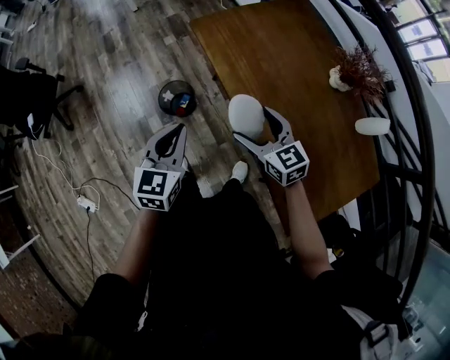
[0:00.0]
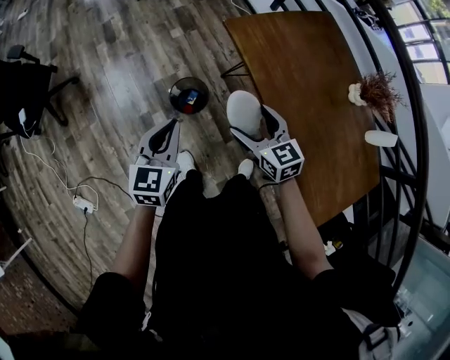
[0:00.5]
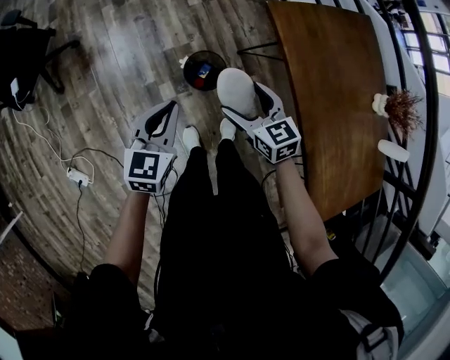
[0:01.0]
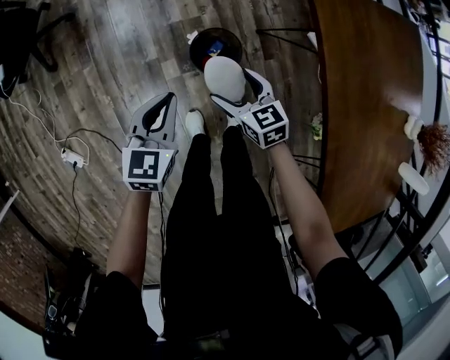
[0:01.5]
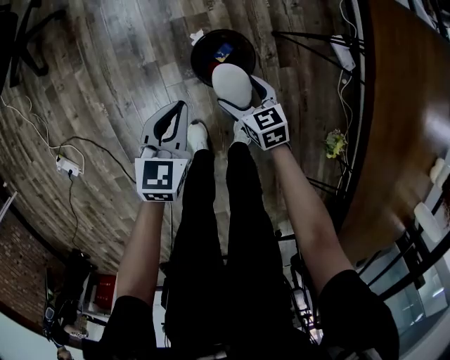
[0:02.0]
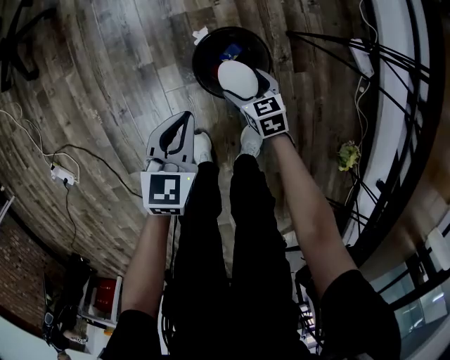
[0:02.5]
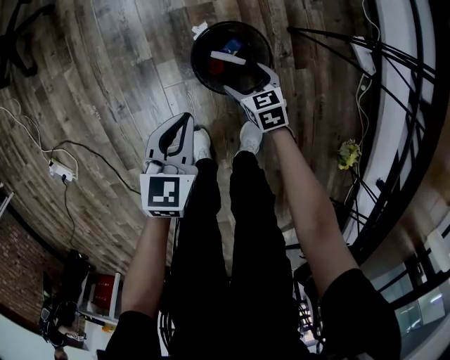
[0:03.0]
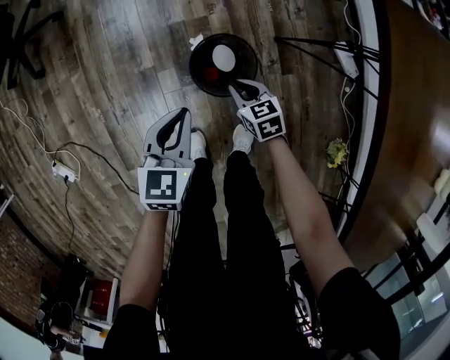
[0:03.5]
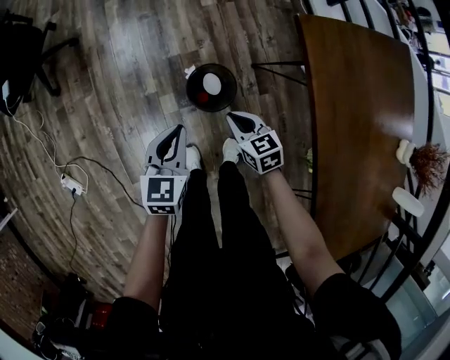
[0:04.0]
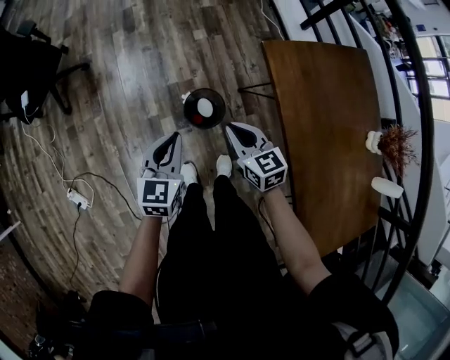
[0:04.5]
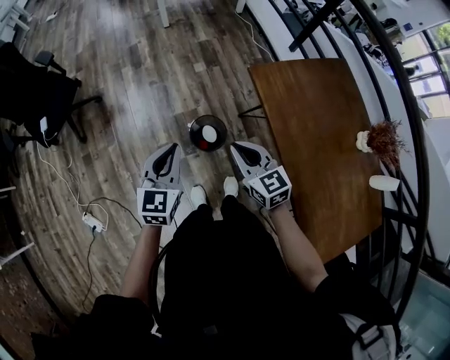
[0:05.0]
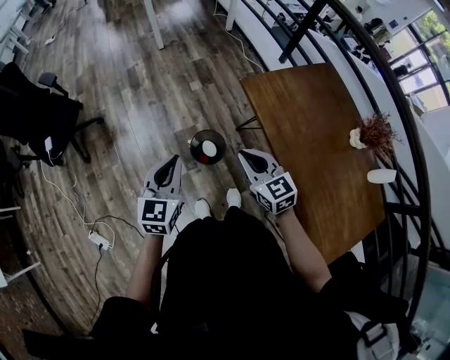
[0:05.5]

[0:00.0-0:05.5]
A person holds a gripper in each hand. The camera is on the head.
0:00.0 to 0:02.0: The two grippers go approximately 50 cm downward, to the left and forward. The right gripper turns by approximately 30 degrees. Meanwhile the left gripper swivels about 20 degrees.
0:02.0 to 0:03.5: The right gripper goes about 5 cm downward, and closes up; the left gripper moves some 10 cm downward and comes back.
0:03.5 to 0:05.5: The two grippers go roughly 50 cm upward. The left gripper rotates about 20 degrees. The right gripper changes its angle by some 30 degrees.

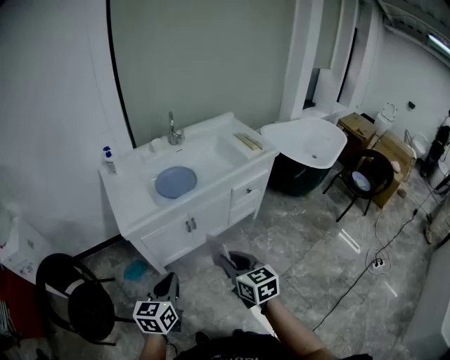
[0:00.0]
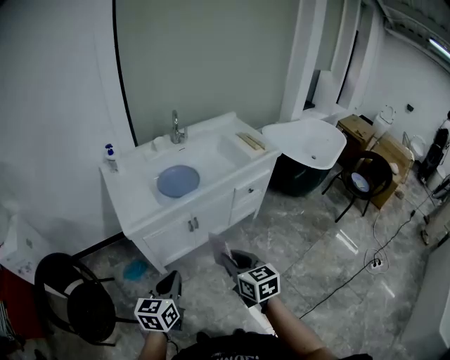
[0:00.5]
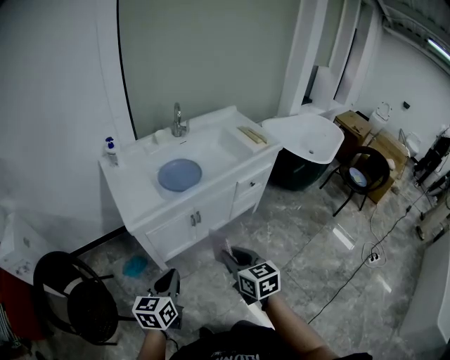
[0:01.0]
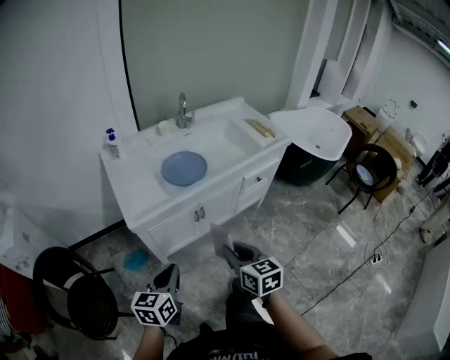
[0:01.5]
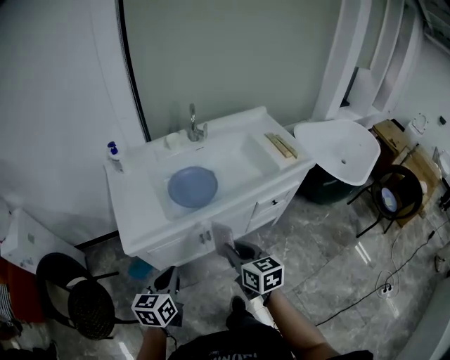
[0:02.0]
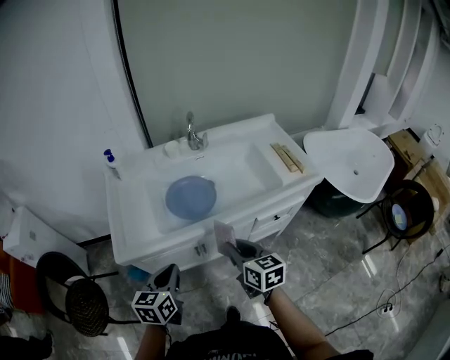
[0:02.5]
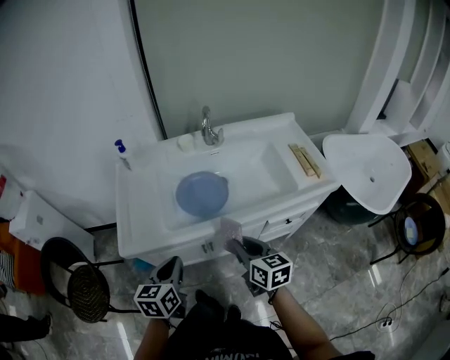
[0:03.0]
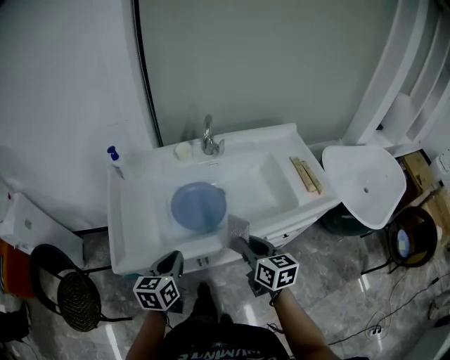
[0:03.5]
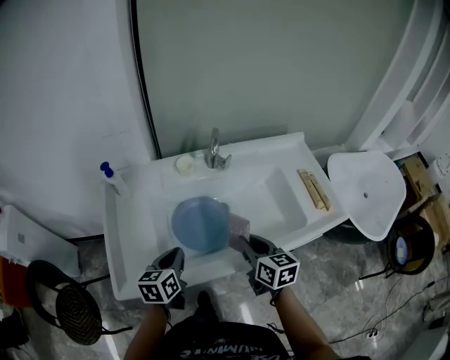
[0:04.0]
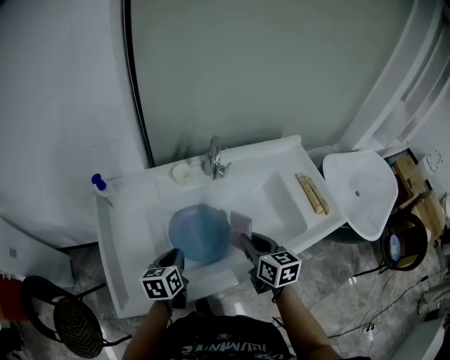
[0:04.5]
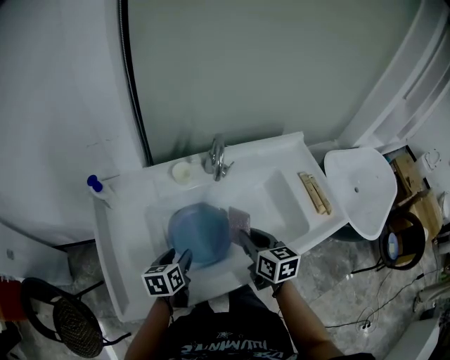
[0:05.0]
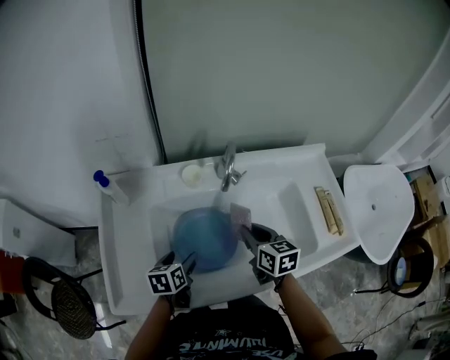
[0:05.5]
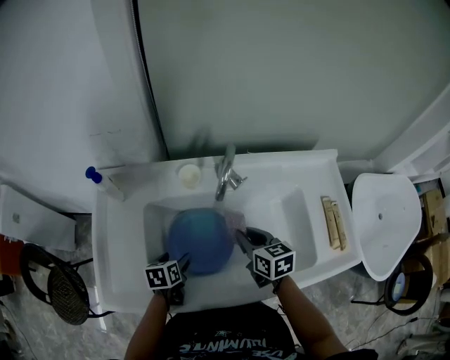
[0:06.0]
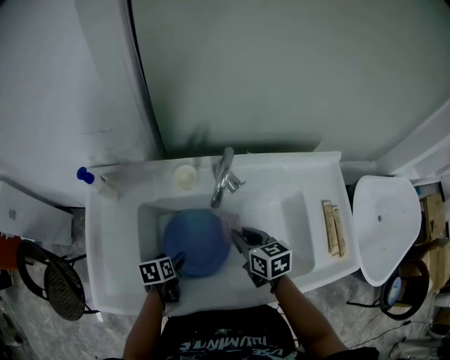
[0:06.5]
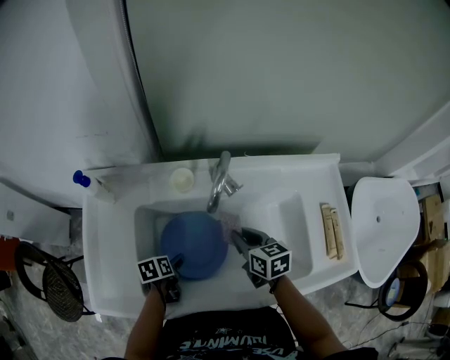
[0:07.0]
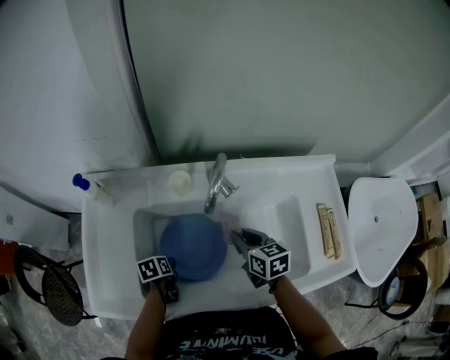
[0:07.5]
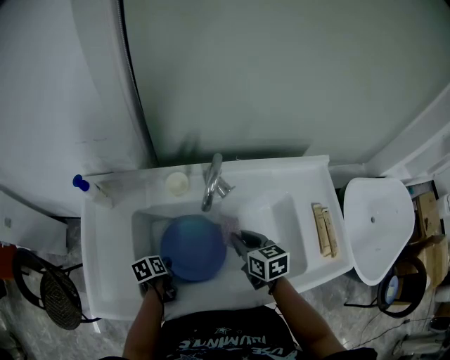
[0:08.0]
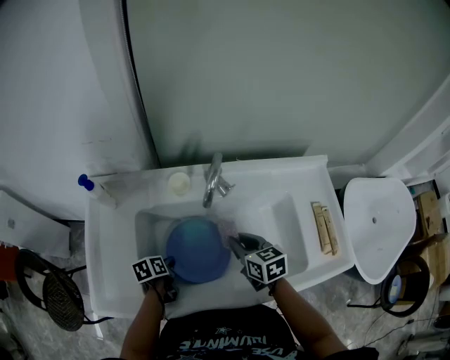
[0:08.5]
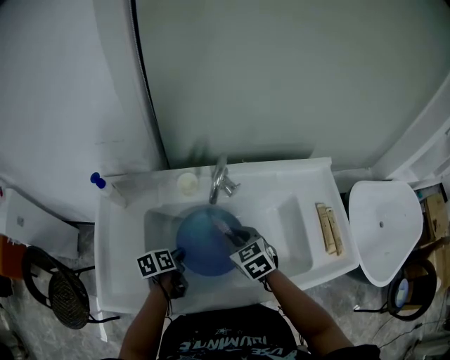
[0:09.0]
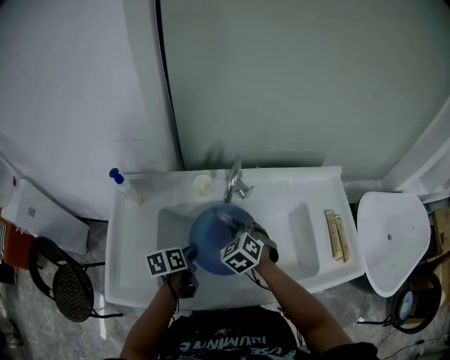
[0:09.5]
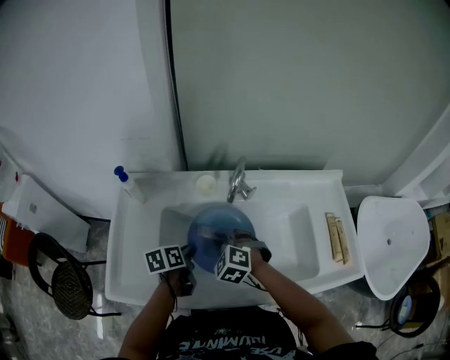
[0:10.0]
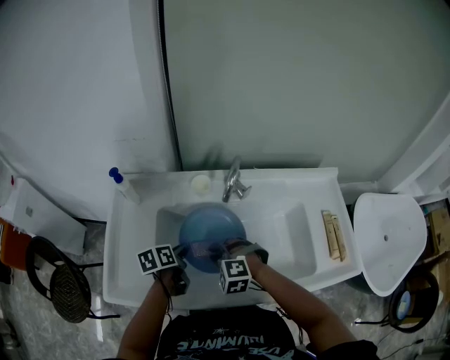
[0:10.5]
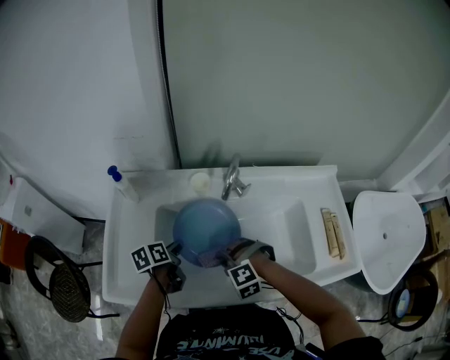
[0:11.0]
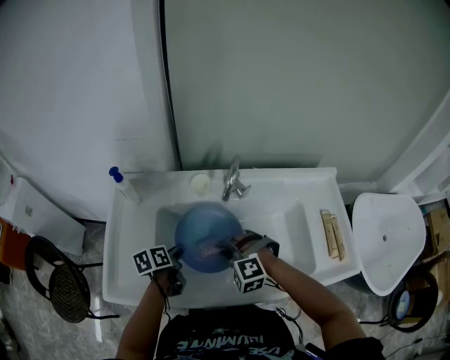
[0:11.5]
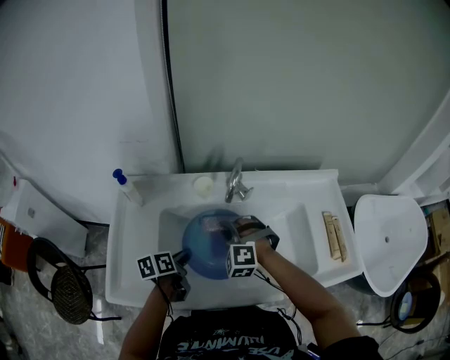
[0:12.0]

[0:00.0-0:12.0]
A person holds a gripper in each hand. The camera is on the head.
0:00.0 to 0:02.0: The two grippers go approximately 20 cm forward.
0:02.0 to 0:04.0: The two grippers go approximately 30 cm forward.
0:04.0 to 0:06.0: The right gripper is displaced forward by approximately 15 cm, while the left gripper is displaced downward and forward by approximately 15 cm, turns by some 30 degrees, and opens up.
0:06.0 to 0:08.0: The left gripper moves downward, approximately 5 cm, turns by approximately 20 degrees, and closes its fingers.
0:08.0 to 0:10.0: The right gripper is displaced to the left by about 15 cm, and rolls counterclockwise, seen from behind, by about 70 degrees. Meanwhile the left gripper is displaced upward by about 15 cm.
0:10.0 to 0:12.0: The right gripper reaches roughly 10 cm backward, then returns, and changes its angle by some 20 degrees.

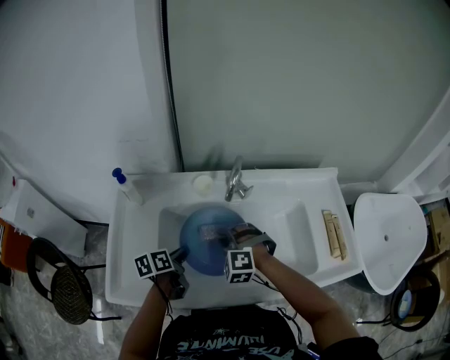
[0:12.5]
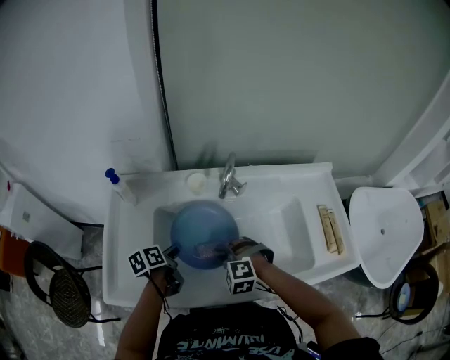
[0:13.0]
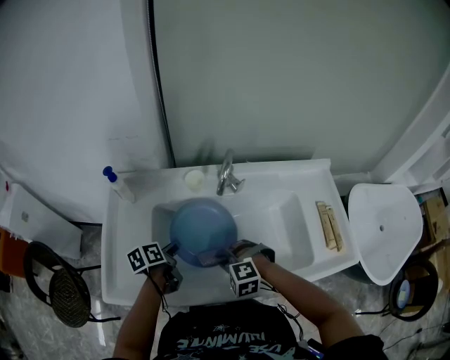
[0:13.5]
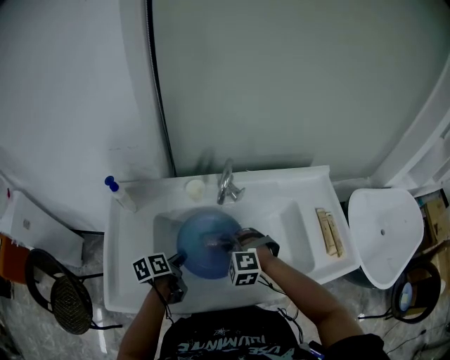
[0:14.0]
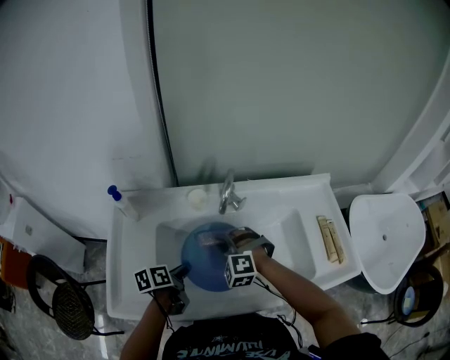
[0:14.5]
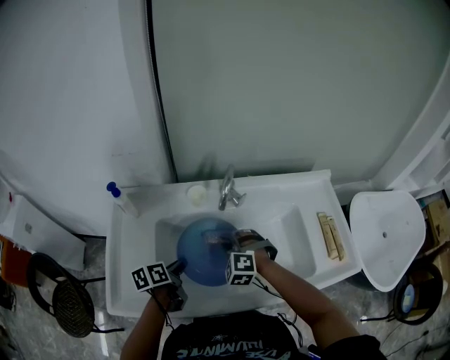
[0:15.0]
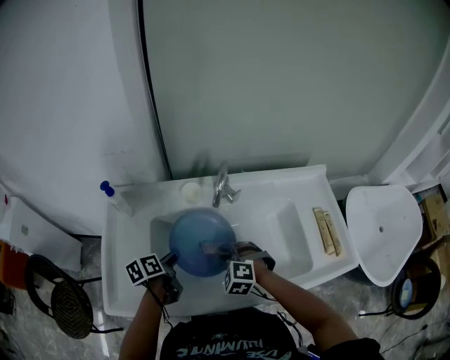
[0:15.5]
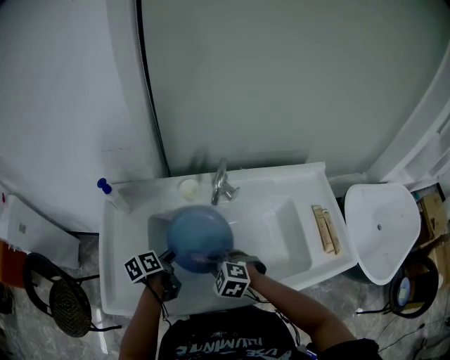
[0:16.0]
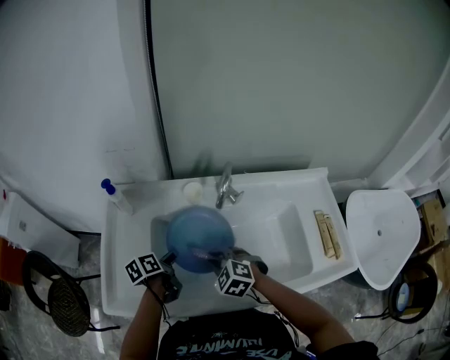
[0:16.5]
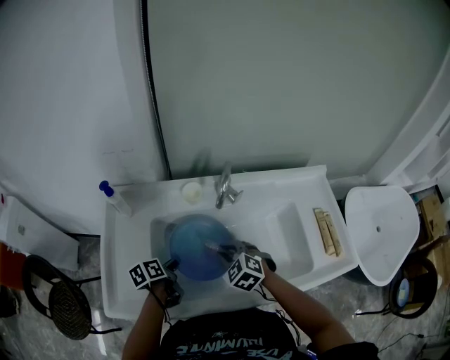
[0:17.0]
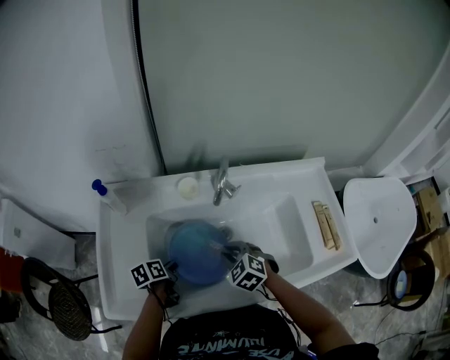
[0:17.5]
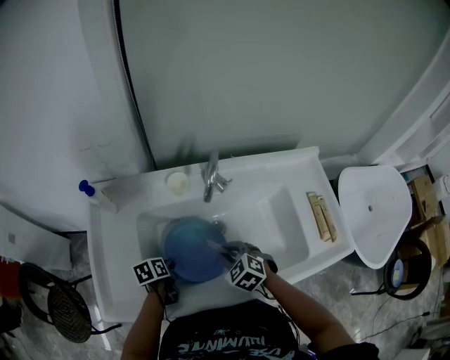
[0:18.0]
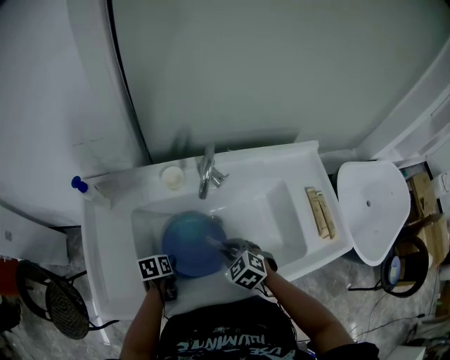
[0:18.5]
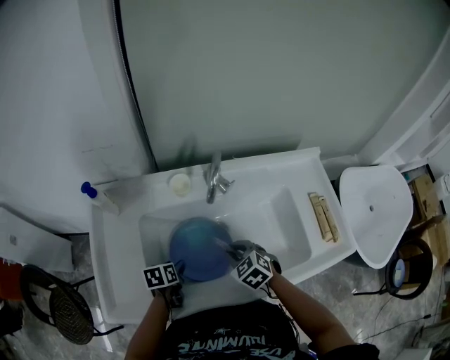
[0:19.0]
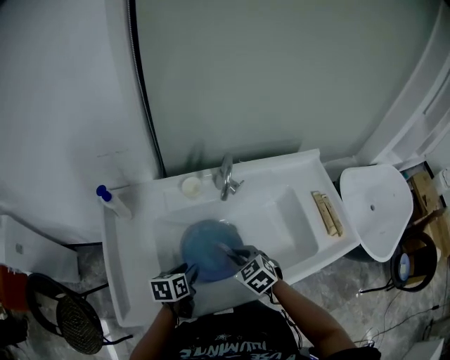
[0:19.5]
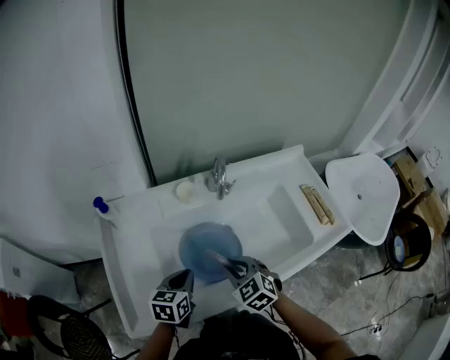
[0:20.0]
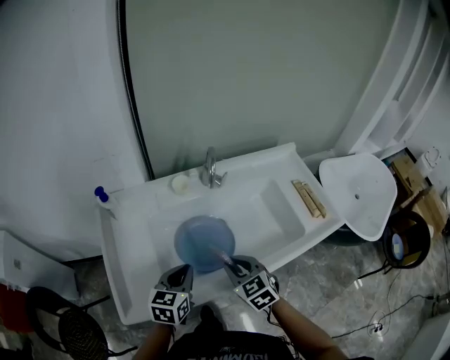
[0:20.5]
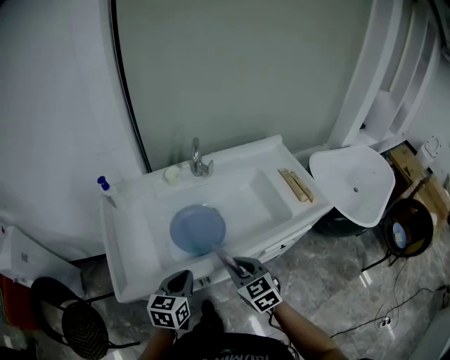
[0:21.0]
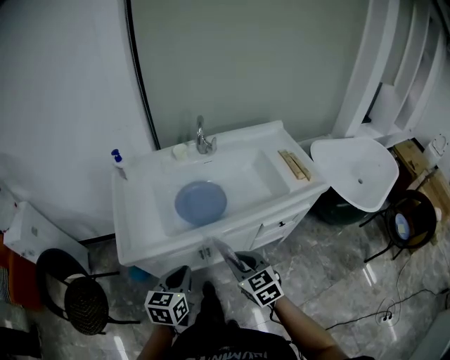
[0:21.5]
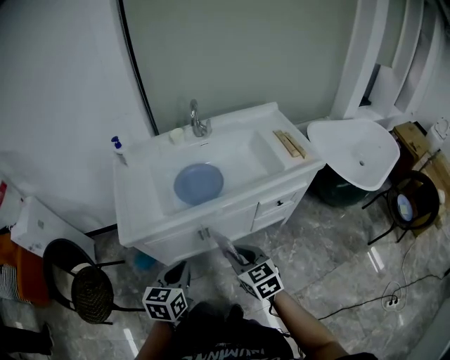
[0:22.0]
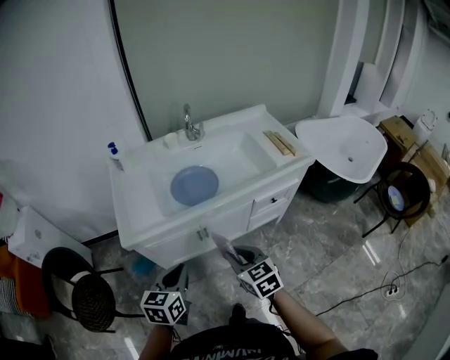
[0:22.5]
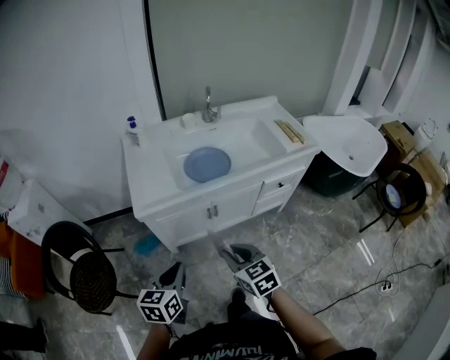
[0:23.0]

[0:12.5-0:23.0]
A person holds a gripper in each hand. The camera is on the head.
0:12.5 to 0:14.5: The right gripper reaches roughly 10 cm backward, then returns.
0:14.5 to 0:16.5: The right gripper shifts roughly 5 cm backward, and turns by about 30 degrees, while the left gripper changes place by approximately 5 cm.
0:16.5 to 0:19.0: The left gripper heads downward, covering approximately 10 cm, rotates about 30 degrees, and opens. The right gripper is displaced to the right by some 10 cm, and rotates about 30 degrees.
0:19.0 to 0:21.0: Both grippers move backward and upward, some 25 cm. The right gripper turns by about 30 degrees. The left gripper changes its angle by some 40 degrees, and closes its fingers.
0:21.0 to 0:23.0: The left gripper heads backward and to the left, covering roughly 30 cm; the right gripper is displaced backward by about 30 cm.
